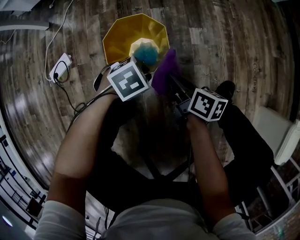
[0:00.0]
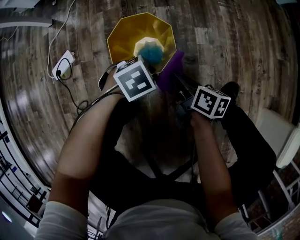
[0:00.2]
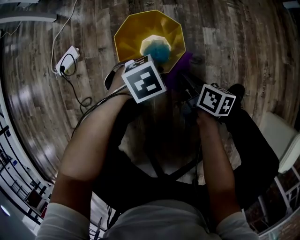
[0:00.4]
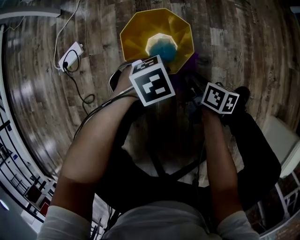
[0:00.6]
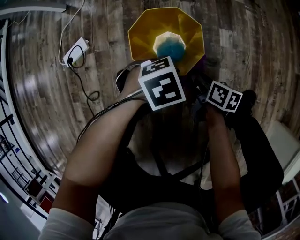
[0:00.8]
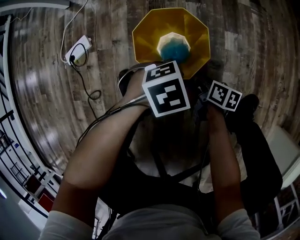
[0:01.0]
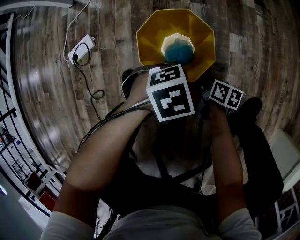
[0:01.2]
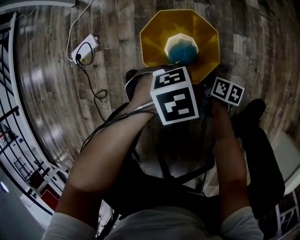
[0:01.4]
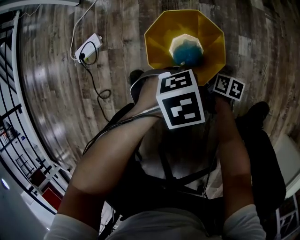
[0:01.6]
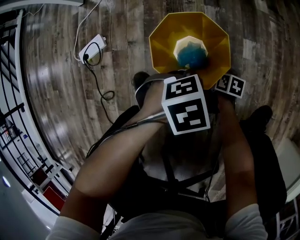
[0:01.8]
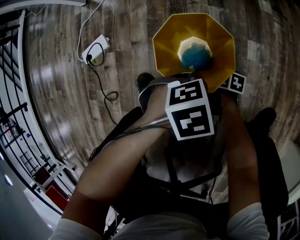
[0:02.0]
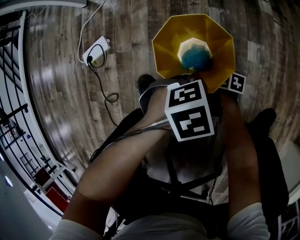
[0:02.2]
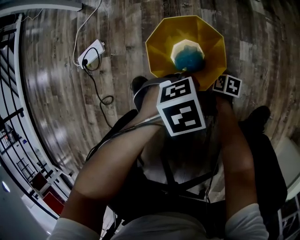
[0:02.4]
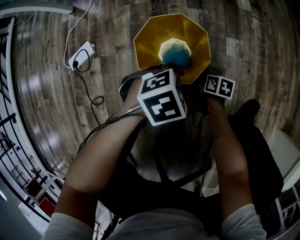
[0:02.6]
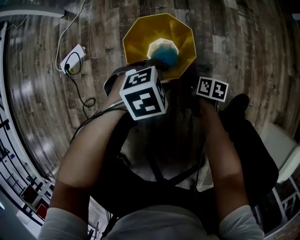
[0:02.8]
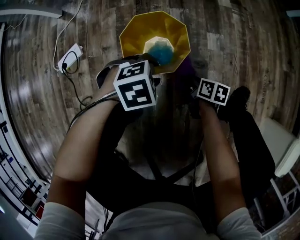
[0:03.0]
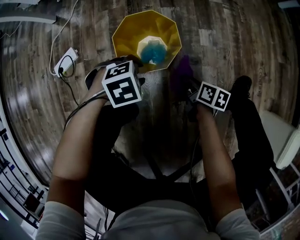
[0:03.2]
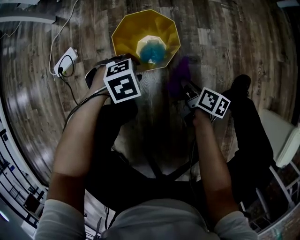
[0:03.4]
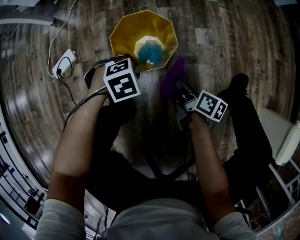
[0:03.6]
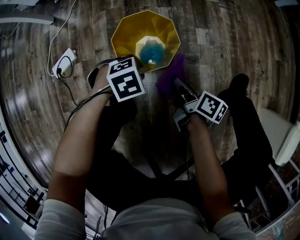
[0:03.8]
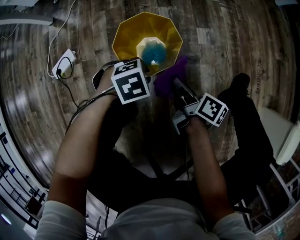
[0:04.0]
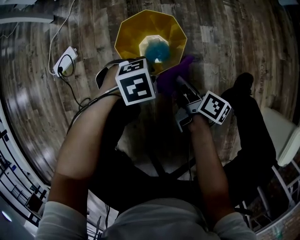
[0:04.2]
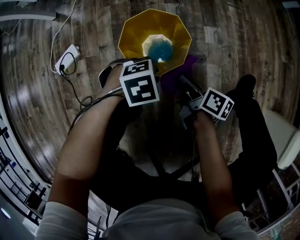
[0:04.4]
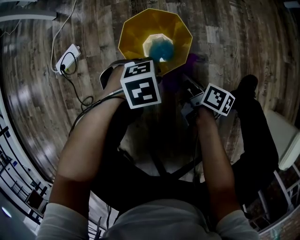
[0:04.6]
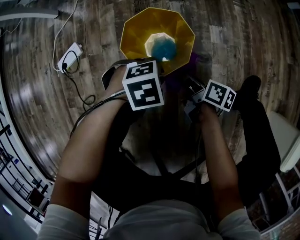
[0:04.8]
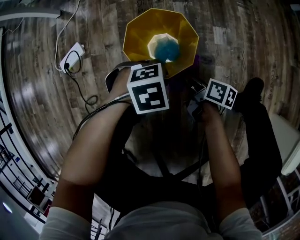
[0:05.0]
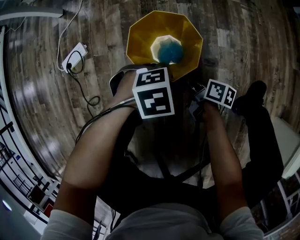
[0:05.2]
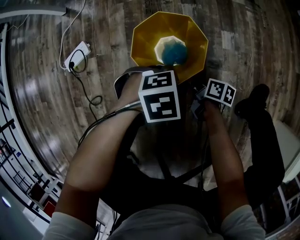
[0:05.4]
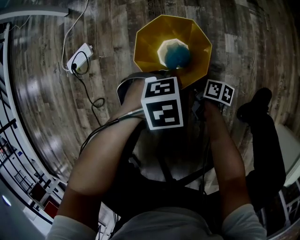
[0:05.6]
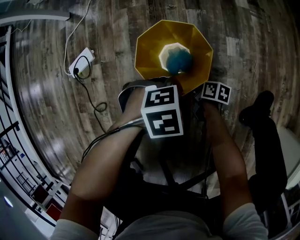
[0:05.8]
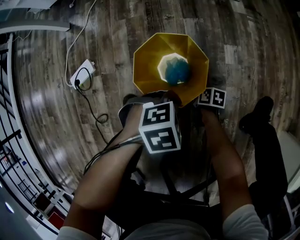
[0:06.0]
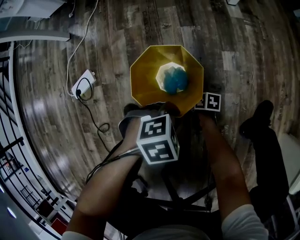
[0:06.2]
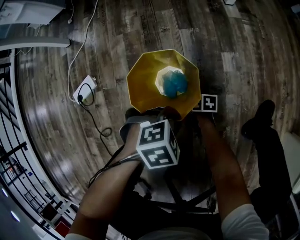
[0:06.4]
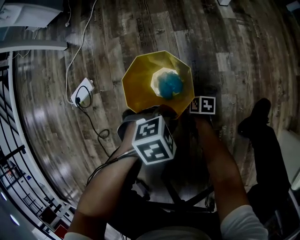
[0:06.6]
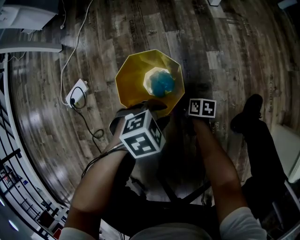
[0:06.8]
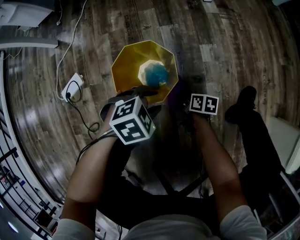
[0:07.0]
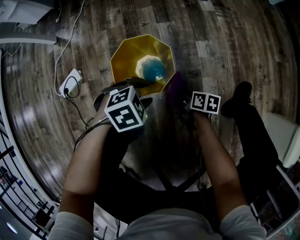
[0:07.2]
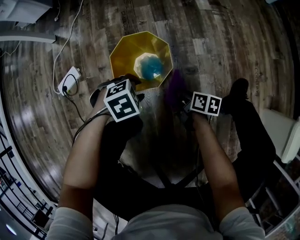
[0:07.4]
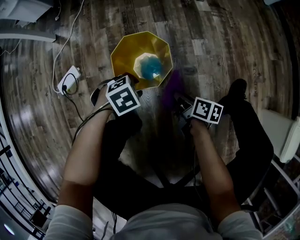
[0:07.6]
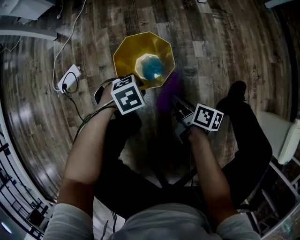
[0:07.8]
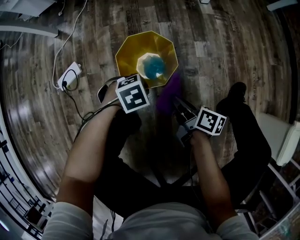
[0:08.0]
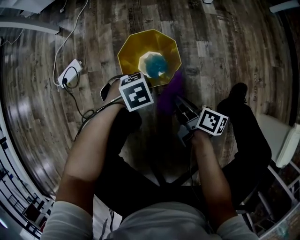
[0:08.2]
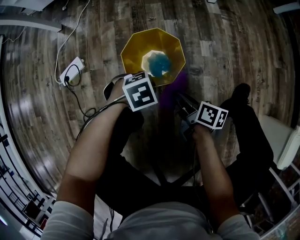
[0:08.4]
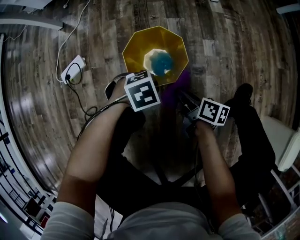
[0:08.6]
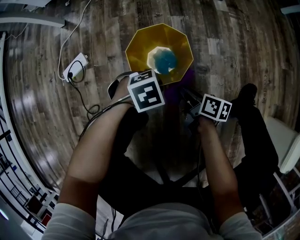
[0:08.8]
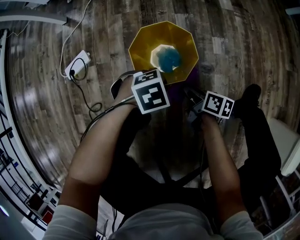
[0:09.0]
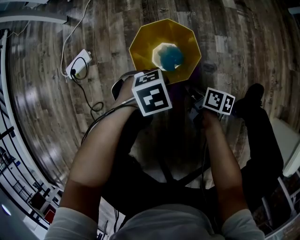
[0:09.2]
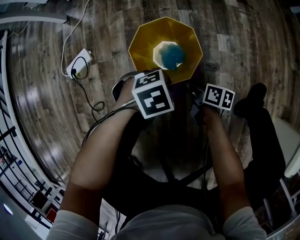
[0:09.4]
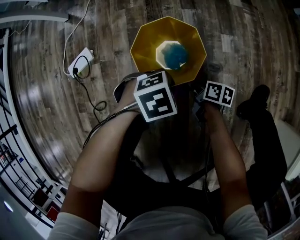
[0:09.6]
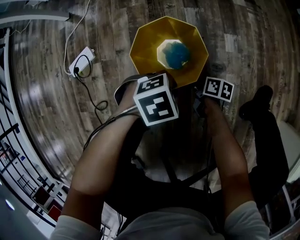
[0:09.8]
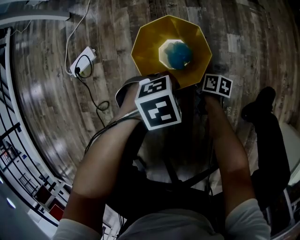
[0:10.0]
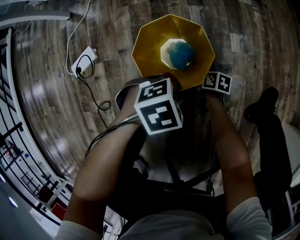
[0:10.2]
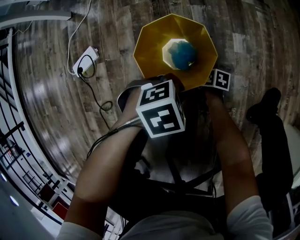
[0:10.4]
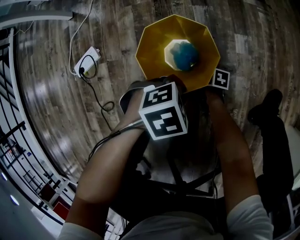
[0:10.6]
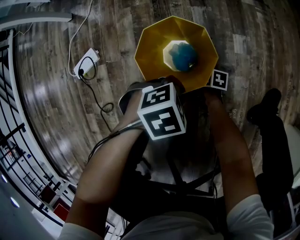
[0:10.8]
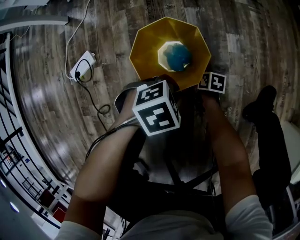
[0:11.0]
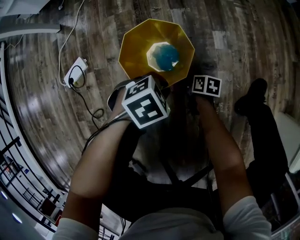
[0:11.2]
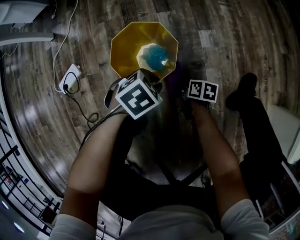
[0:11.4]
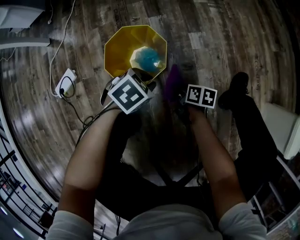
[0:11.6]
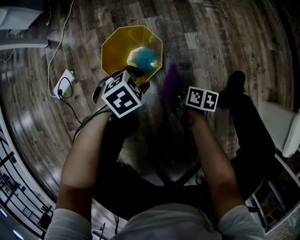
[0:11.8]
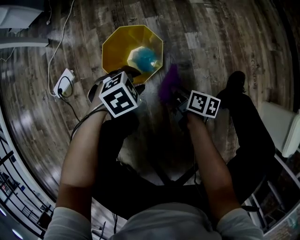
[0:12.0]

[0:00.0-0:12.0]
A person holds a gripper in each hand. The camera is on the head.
0:00.0 to 0:01.6: The right gripper is displaced downward by roughly 20 cm, and changes its angle by approximately 20 degrees.
0:01.6 to 0:03.0: The right gripper moves upward, about 10 cm. The left gripper opens its fingers.
0:03.0 to 0:04.4: The right gripper moves upward, about 10 cm, and rotates about 30 degrees. Meanwhile the left gripper closes its fingers.
0:04.4 to 0:06.0: The right gripper goes about 20 cm downward, and swivels approximately 30 degrees.
0:06.0 to 0:07.6: The right gripper moves upward, some 15 cm, and turns by some 20 degrees. The left gripper changes place by some 5 cm, and opens.
0:07.6 to 0:09.0: The right gripper travels upward and back again, about 5 cm each way; the left gripper closes.
0:09.0 to 0:10.4: The right gripper goes roughly 15 cm downward, and changes its angle by roughly 20 degrees.
0:10.4 to 0:12.0: The right gripper goes approximately 15 cm upward, and rotates approximately 30 degrees, while the left gripper opens its fingers.

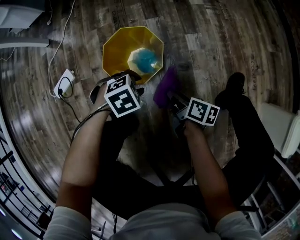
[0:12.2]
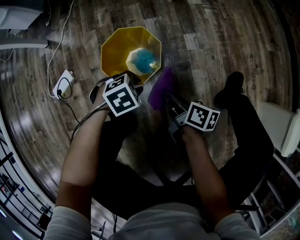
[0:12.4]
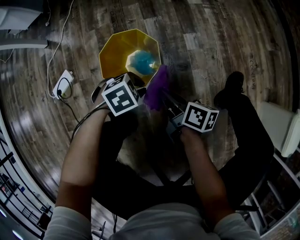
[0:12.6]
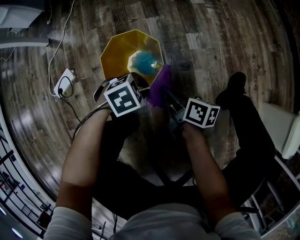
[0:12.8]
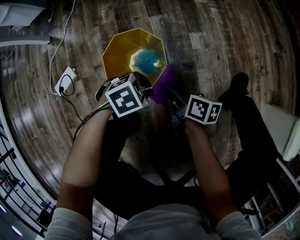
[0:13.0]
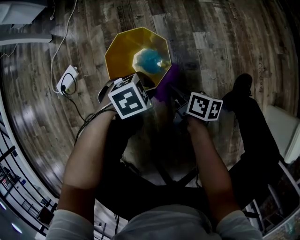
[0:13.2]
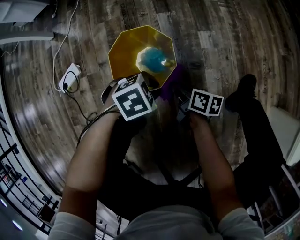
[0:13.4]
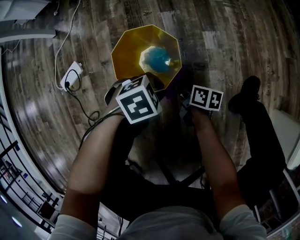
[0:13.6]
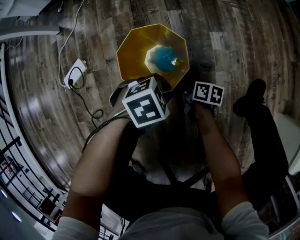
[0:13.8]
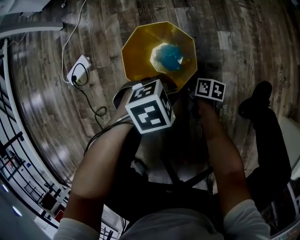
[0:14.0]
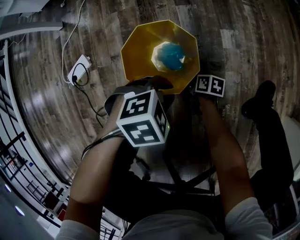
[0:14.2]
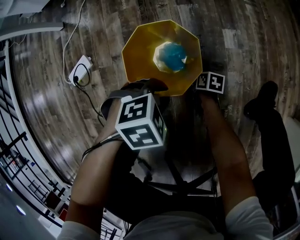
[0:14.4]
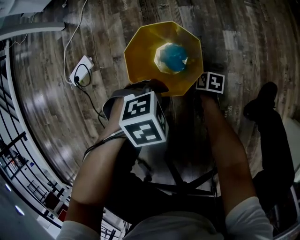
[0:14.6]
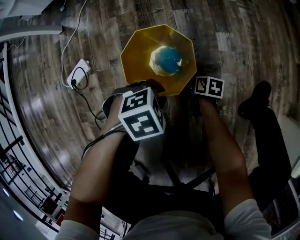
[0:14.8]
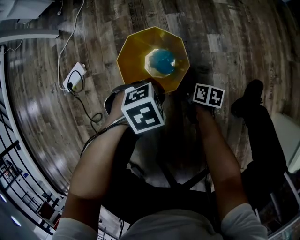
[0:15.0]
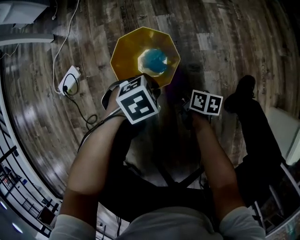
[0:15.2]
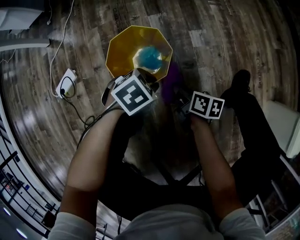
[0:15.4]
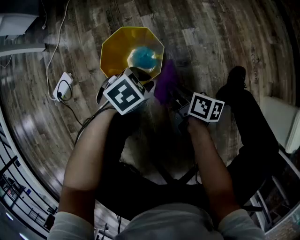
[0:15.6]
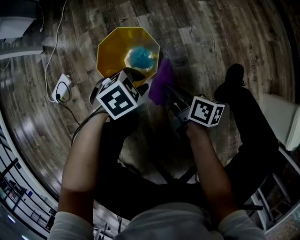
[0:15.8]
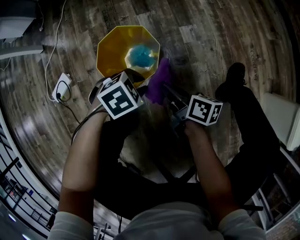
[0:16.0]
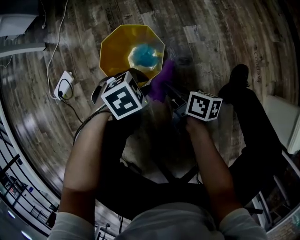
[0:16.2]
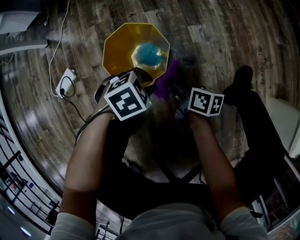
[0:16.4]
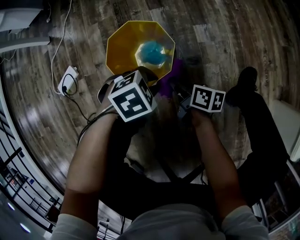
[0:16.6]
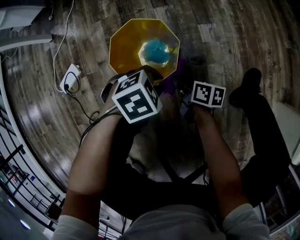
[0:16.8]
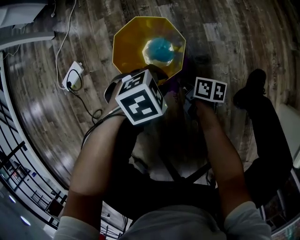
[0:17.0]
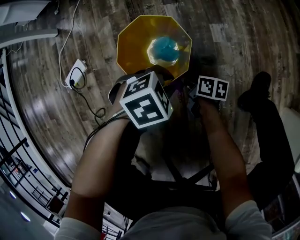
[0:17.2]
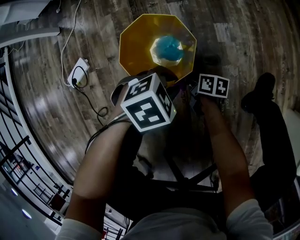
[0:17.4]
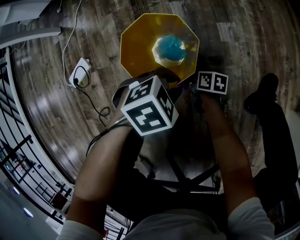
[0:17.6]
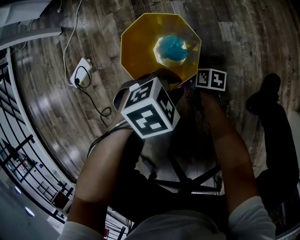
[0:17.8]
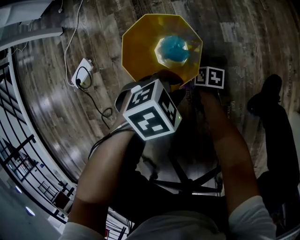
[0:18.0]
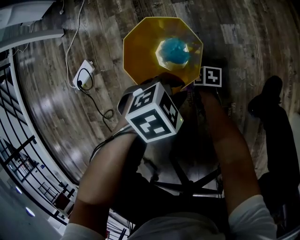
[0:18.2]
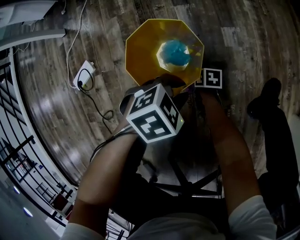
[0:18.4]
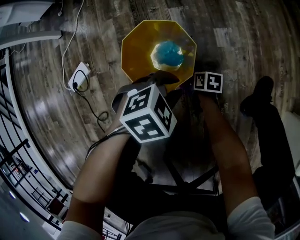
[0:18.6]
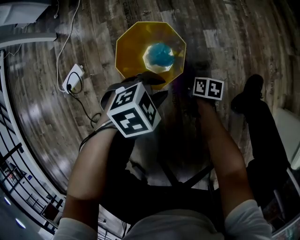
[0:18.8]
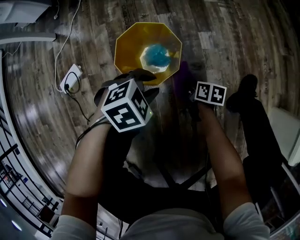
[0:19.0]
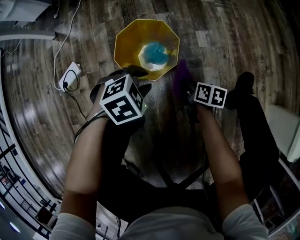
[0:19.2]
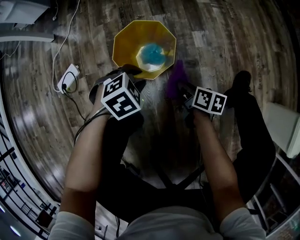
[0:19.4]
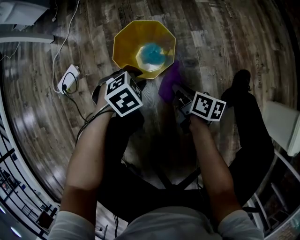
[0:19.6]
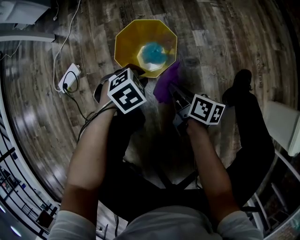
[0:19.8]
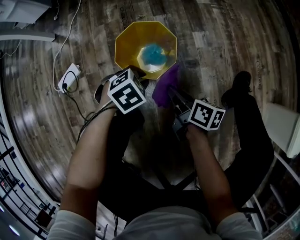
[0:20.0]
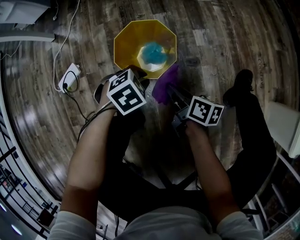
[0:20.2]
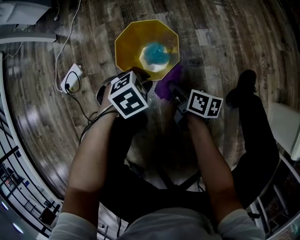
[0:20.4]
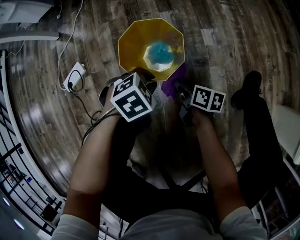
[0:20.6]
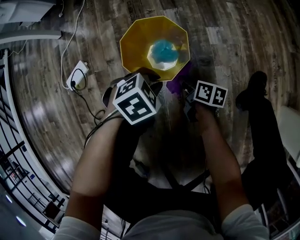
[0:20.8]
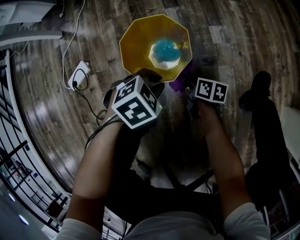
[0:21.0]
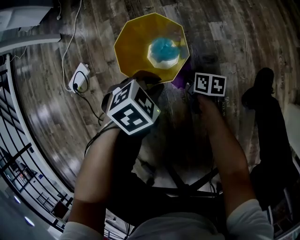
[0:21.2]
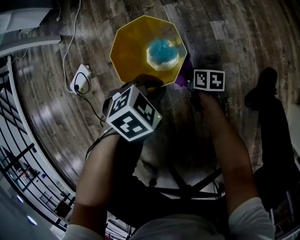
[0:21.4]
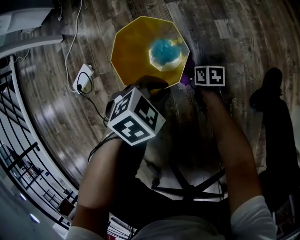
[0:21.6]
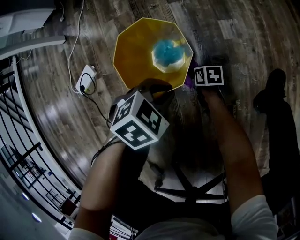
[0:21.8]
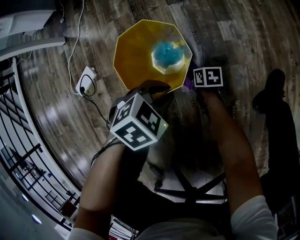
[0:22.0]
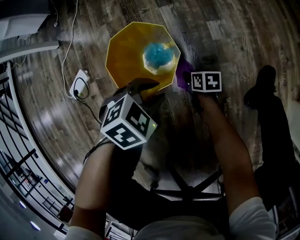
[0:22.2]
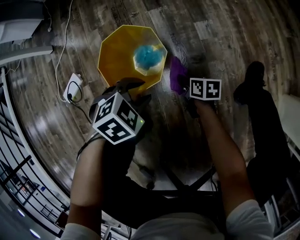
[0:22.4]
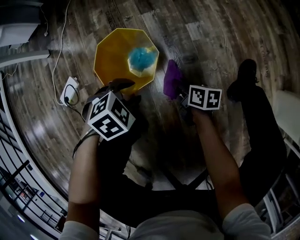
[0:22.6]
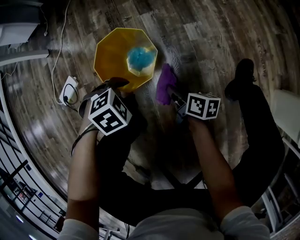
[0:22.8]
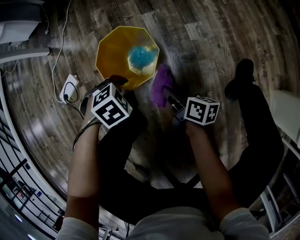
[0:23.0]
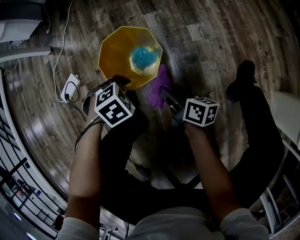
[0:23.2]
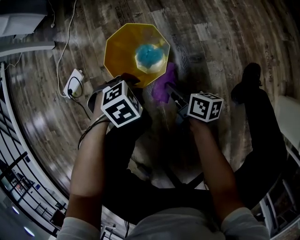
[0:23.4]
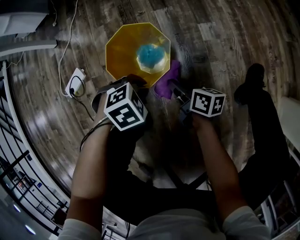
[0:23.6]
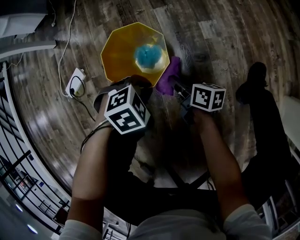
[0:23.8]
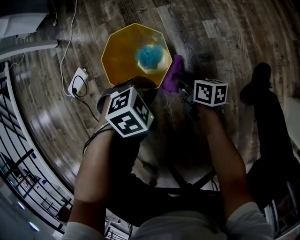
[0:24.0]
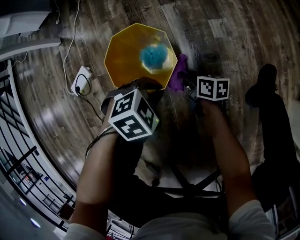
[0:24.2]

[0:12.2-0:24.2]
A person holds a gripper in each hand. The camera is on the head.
0:12.2 to 0:13.8: The right gripper moves downward, approximately 10 cm.
0:13.8 to 0:15.2: The right gripper moves about 10 cm downward and comes back.
0:16.6 to 0:18.2: The right gripper travels downward by approximately 20 cm, and rotates approximately 30 degrees.
0:18.2 to 0:19.8: The right gripper moves upward, approximately 25 cm, and changes its angle by approximately 30 degrees; the left gripper changes place by roughly 5 cm.
0:19.8 to 0:21.2: The right gripper shifts about 15 cm downward.
0:21.2 to 0:22.6: The right gripper travels upward by approximately 5 cm; the left gripper opens its fingers.
0:22.6 to 0:24.2: The right gripper travels upward and back again, some 10 cm each way. The left gripper closes up.
